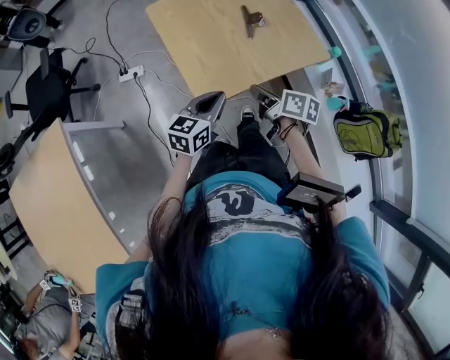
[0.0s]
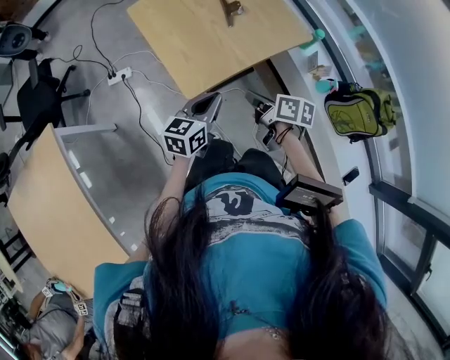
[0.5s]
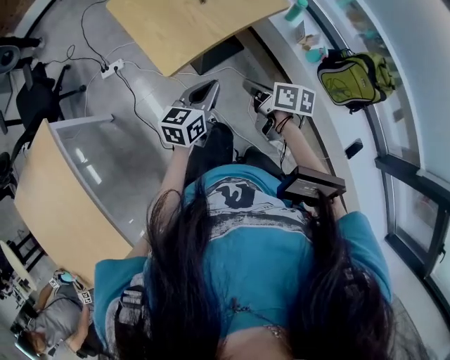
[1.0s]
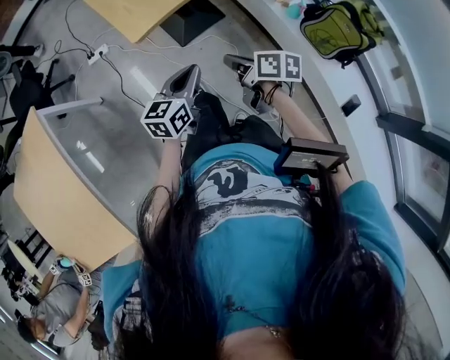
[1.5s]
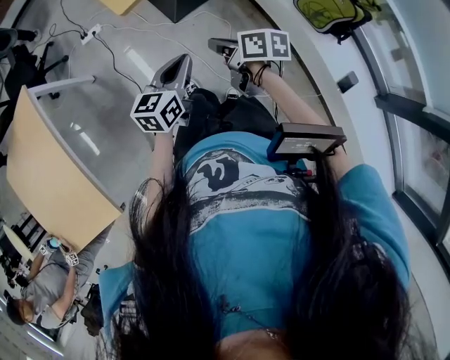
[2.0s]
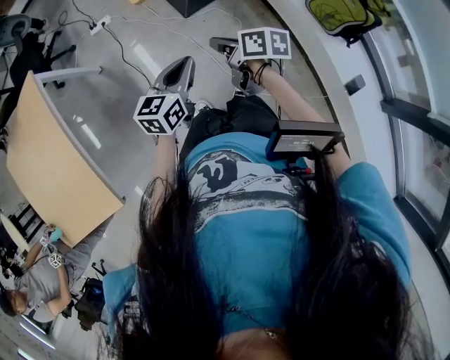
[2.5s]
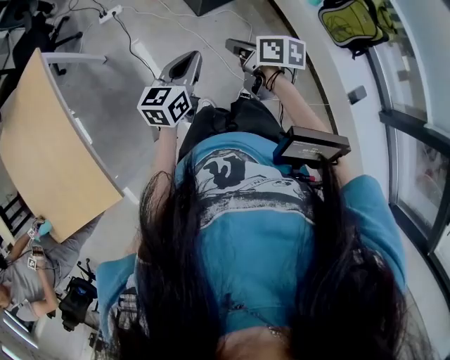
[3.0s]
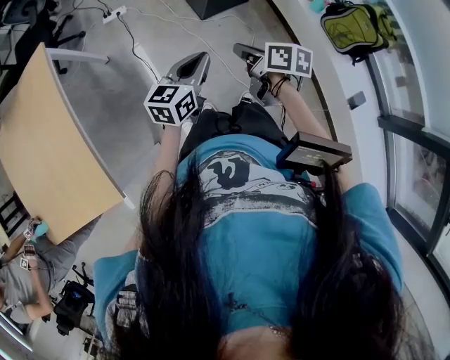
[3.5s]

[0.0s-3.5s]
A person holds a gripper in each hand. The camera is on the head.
0.0s to 2.0s: The right gripper moves backward, some 35 cm, while the left gripper is displaced backward and to the right by some 40 cm.
2.0s to 3.5s: The two grippers go some 10 cm to the left.

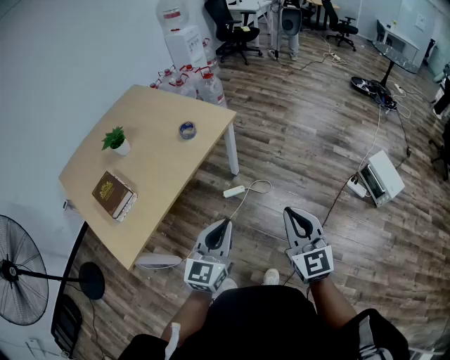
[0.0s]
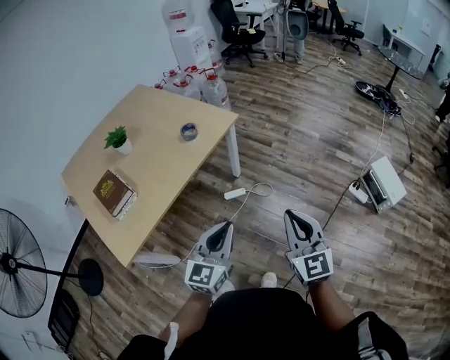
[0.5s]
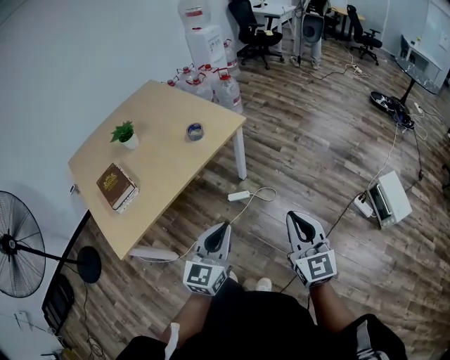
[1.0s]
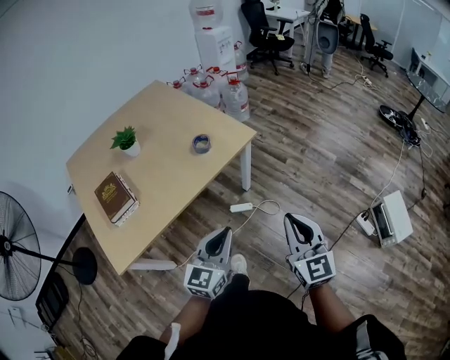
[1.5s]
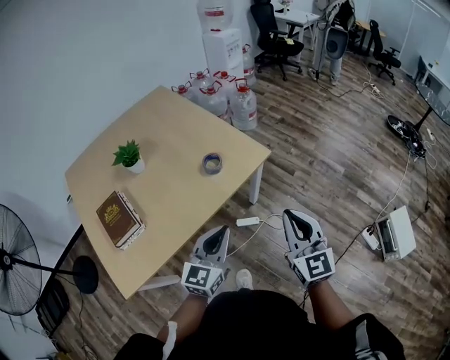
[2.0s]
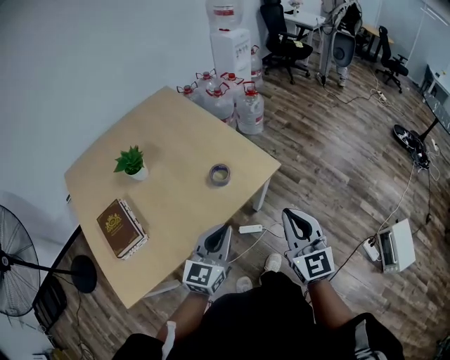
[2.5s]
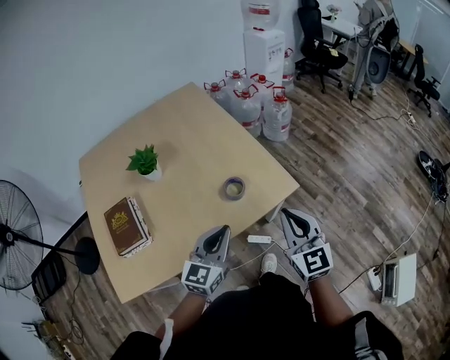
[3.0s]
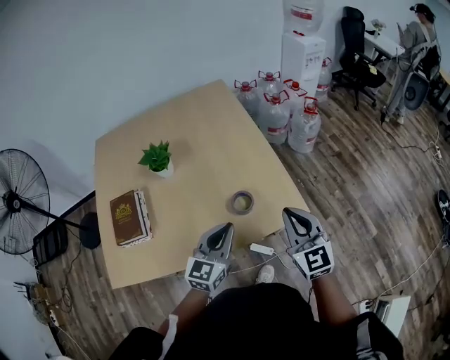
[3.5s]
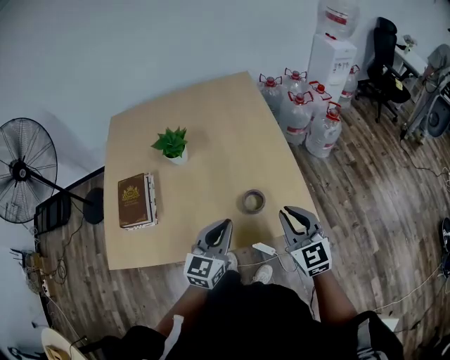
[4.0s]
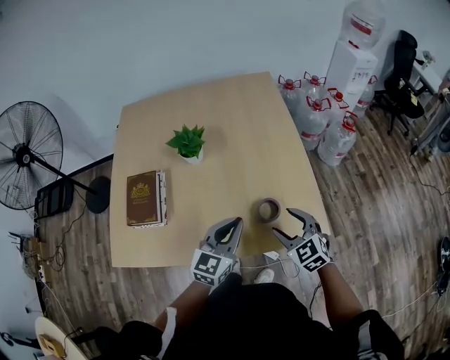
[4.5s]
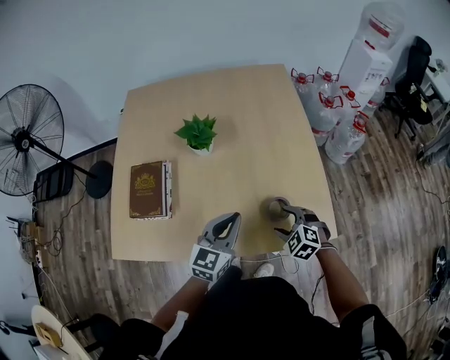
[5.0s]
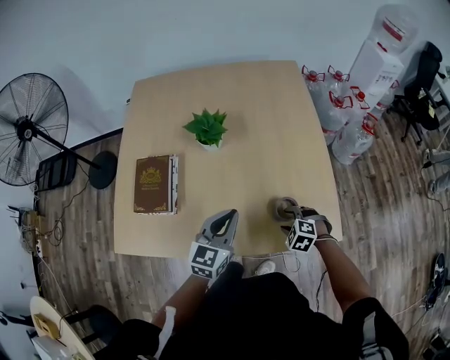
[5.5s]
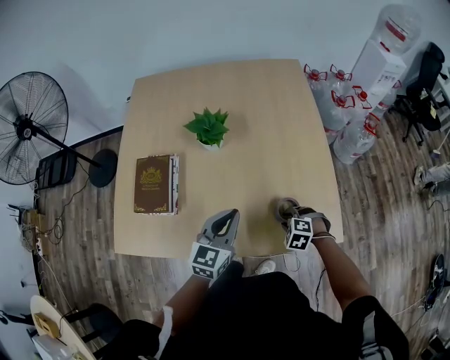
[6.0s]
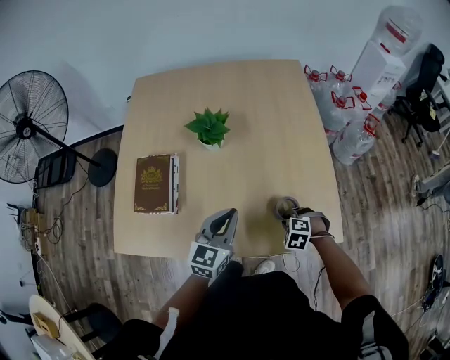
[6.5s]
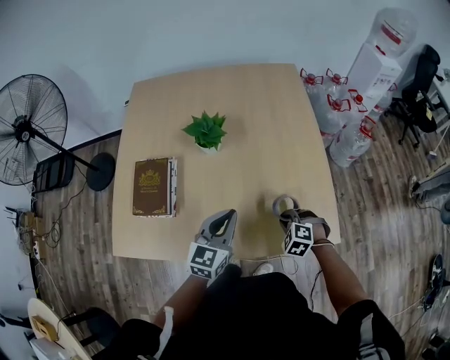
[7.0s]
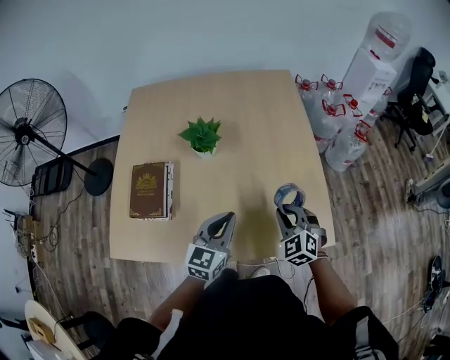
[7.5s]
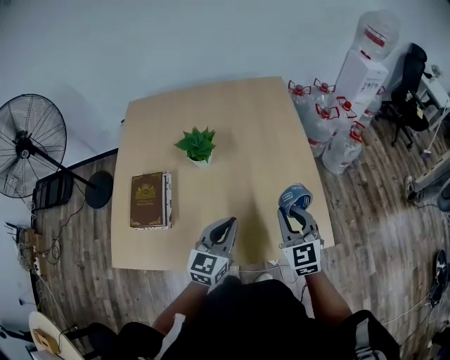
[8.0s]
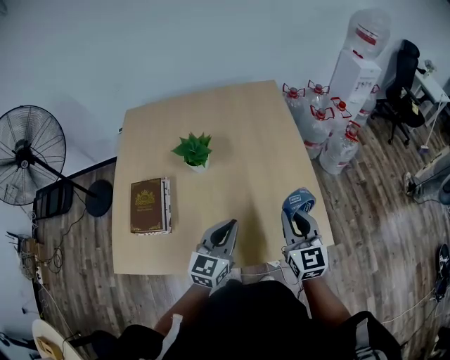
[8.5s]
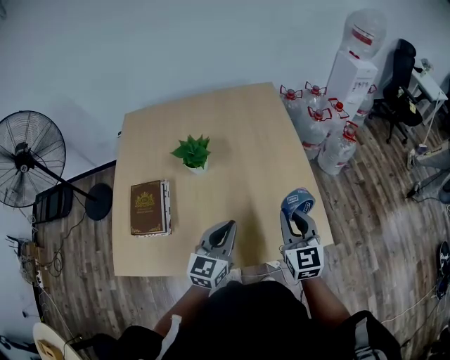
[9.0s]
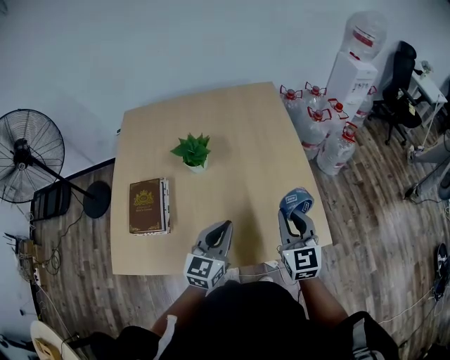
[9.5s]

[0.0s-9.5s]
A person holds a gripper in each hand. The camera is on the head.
0.0s to 2.0s: Both grippers move forward, approximately 25 cm.
2.0s to 4.0s: The left gripper moves about 25 cm, and changes its angle by approximately 30 degrees. The right gripper ends up about 35 cm from where it was, and rotates some 40 degrees.
4.0s to 5.5s: The right gripper moves downward, some 25 cm, tips its fingers downward by about 50 degrees, and opens its fingers, while the left gripper moves to the left and forward, approximately 10 cm.
5.5s to 7.5s: The right gripper goes about 15 cm upward, tips its fingers upward by approximately 30 degrees, and closes up.
7.5s to 9.5s: The right gripper shifts about 10 cm upward, and turns by roughly 40 degrees.

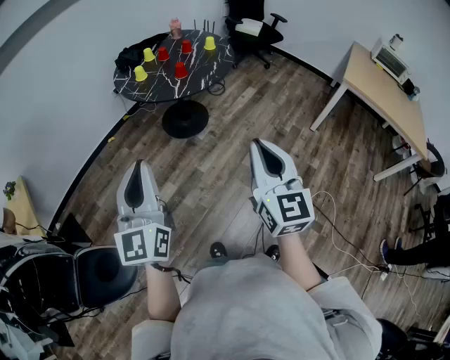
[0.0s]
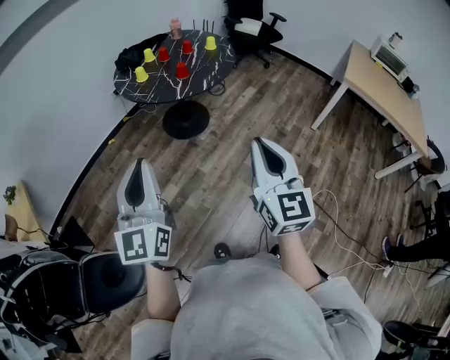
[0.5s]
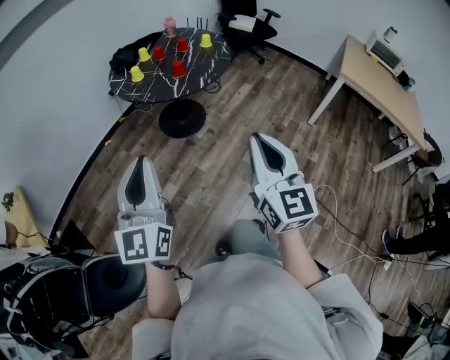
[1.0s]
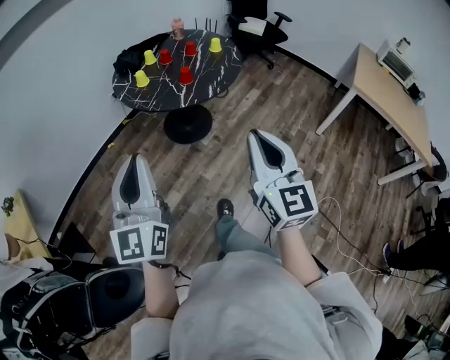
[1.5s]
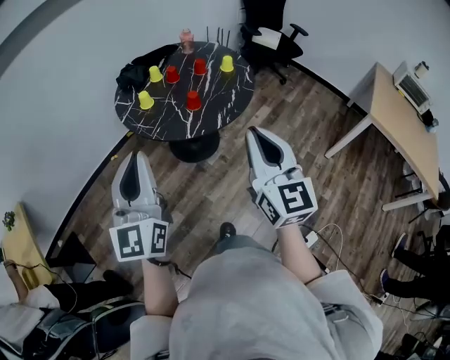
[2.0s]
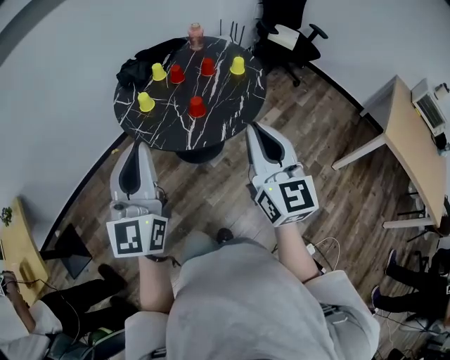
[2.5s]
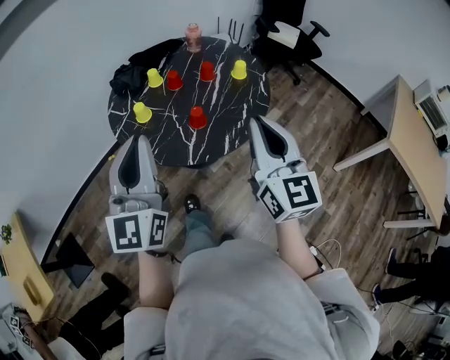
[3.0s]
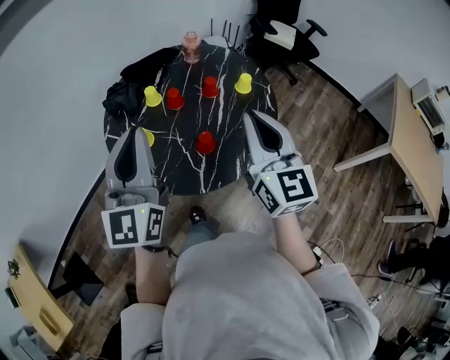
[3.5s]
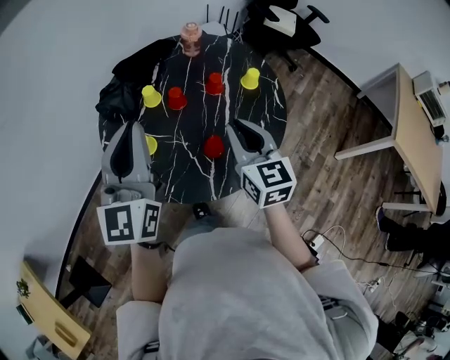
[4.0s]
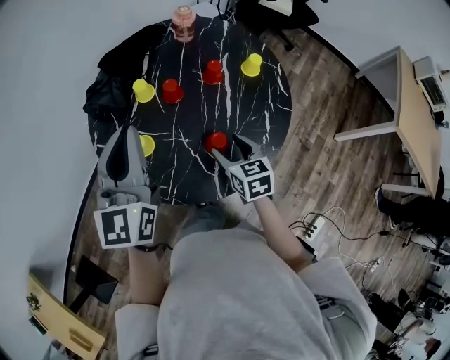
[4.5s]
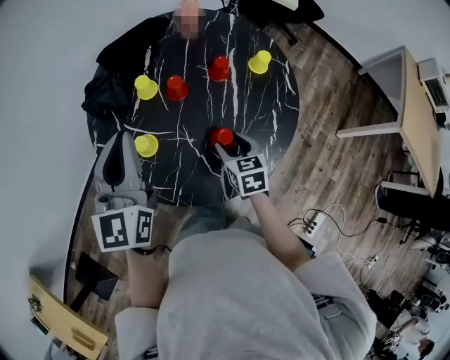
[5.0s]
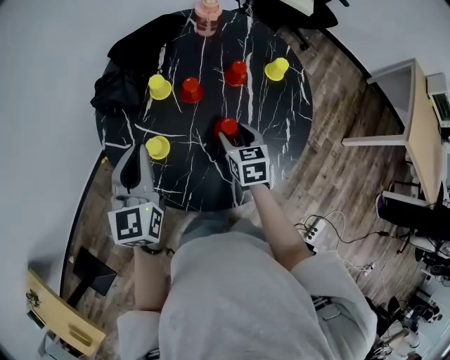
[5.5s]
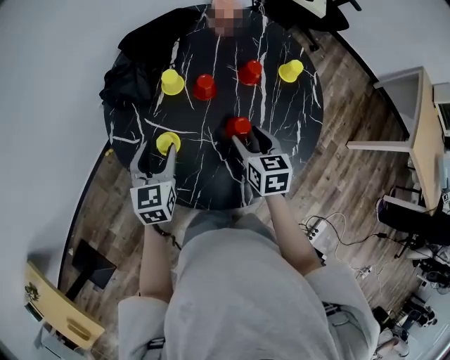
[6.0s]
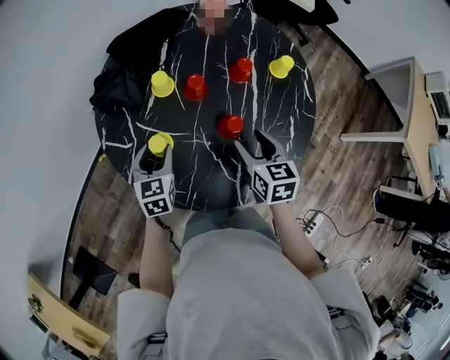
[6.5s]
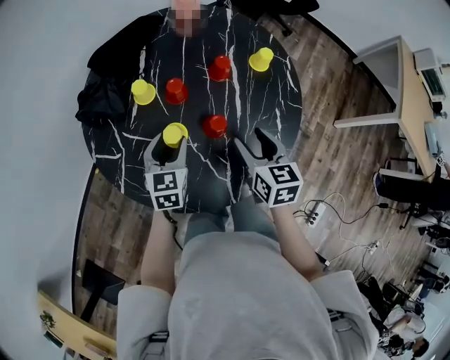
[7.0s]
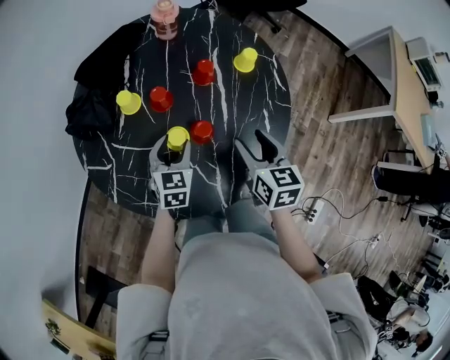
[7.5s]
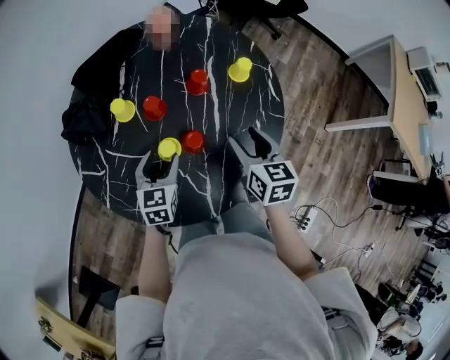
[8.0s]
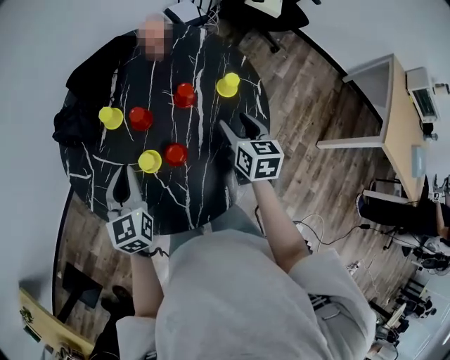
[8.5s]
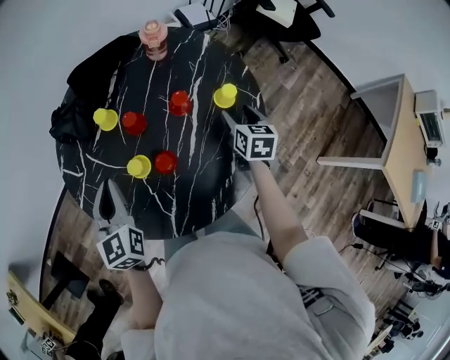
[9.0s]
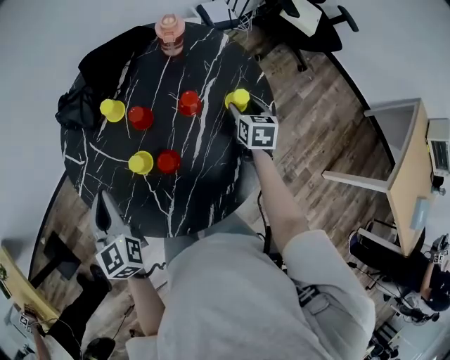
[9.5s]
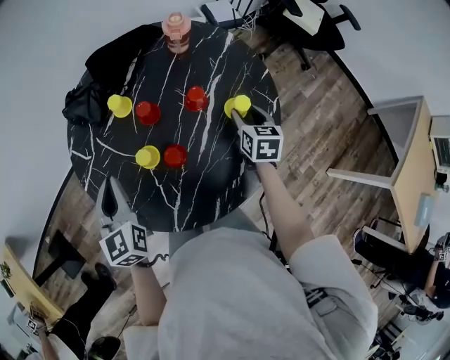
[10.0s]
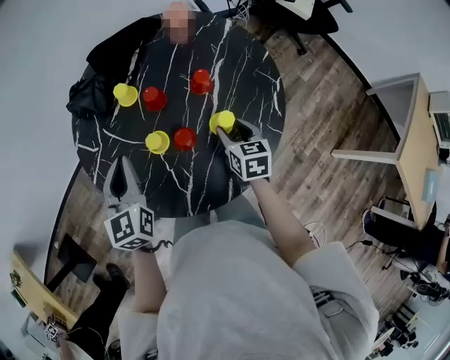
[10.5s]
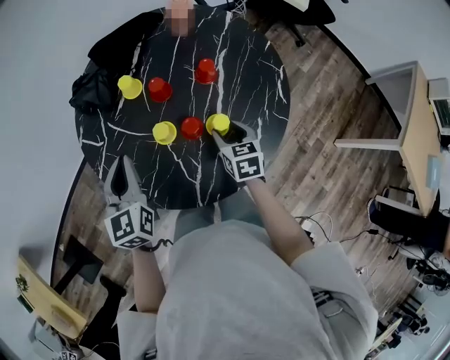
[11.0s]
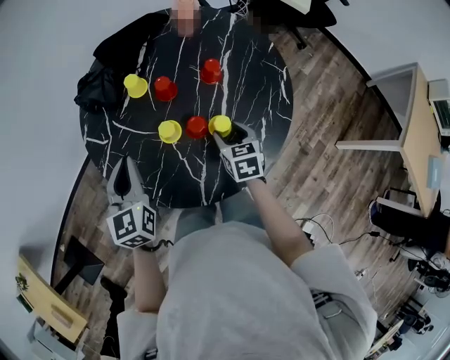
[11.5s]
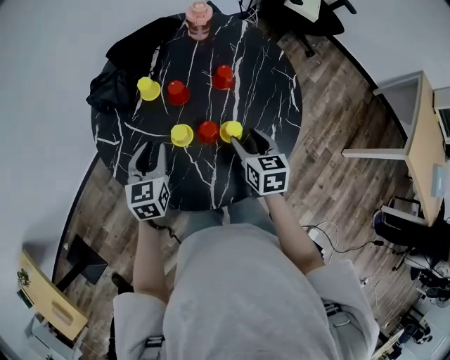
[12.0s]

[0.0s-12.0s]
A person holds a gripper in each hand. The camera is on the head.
0.0s to 2.0s: Both grippers move forward, about 30 cm.
2.0s to 4.0s: Both grippers are carried forward, about 40 cm. The right gripper rotates roughly 20 degrees.
4.0s to 6.0s: Both grippers travel together downward, about 25 cm. The right gripper changes its angle by some 30 degrees, and opens its fingers. The left gripper points its fingers some 40 degrees further downward, and opens.
6.0s to 8.0s: The left gripper heads to the right, covering roughly 15 cm, while the right gripper heads to the right and upward, covering roughly 15 cm.
8.0s to 10.0s: The left gripper moves upward, some 15 cm, rotates approximately 40 degrees, and closes up; the right gripper ends up some 20 cm from where it was.
10.0s to 12.0s: The left gripper goes some 5 cm downward, swivels approximately 30 degrees, and opens up; the right gripper is displaced backward and to the left by about 20 cm.

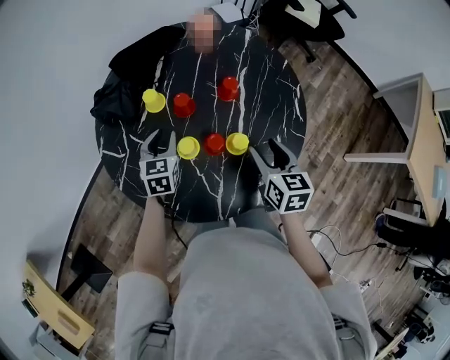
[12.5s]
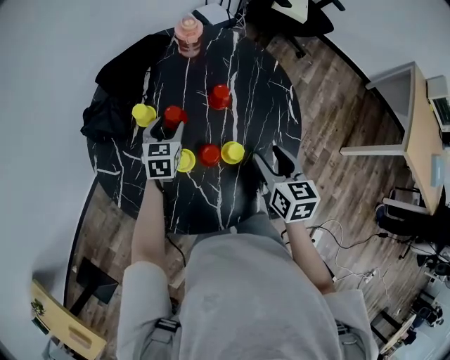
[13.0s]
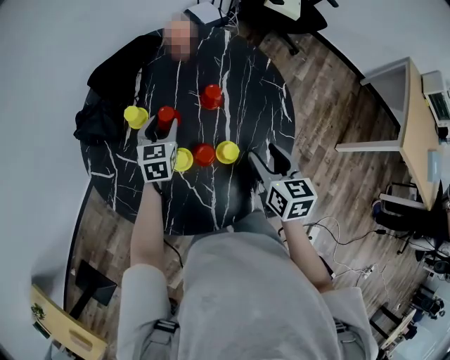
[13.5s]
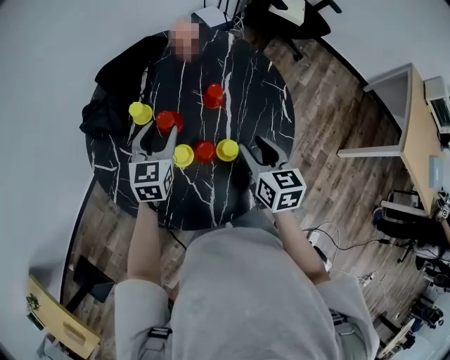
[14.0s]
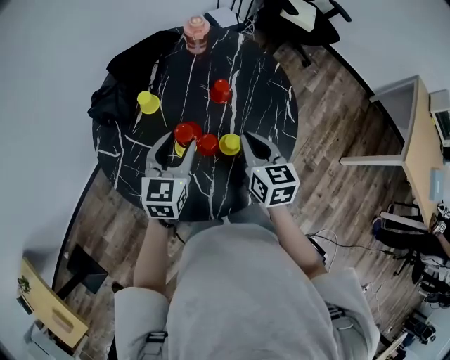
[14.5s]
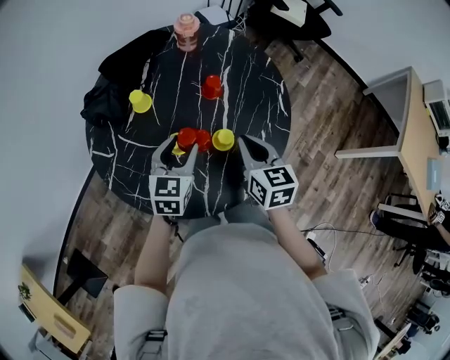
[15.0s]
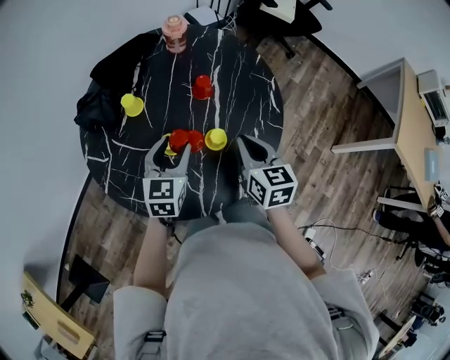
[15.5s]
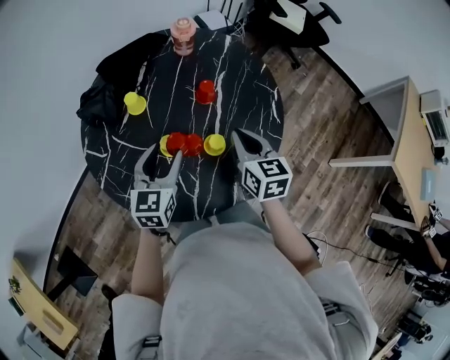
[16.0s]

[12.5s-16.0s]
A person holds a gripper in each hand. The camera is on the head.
12.5s to 14.5s: The left gripper moves upward and to the right, about 15 cm. Meanwhile the right gripper closes up.
14.5s to 16.0s: There are only small adjustments of the grippers.
